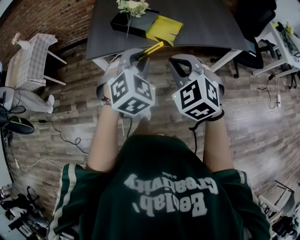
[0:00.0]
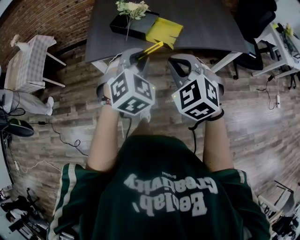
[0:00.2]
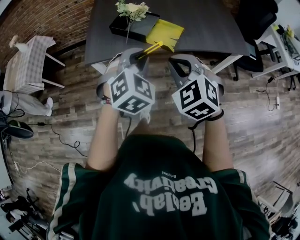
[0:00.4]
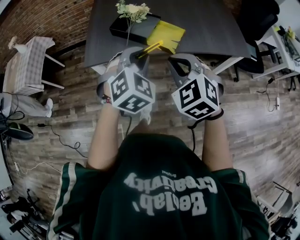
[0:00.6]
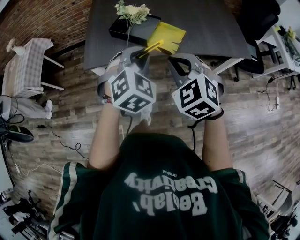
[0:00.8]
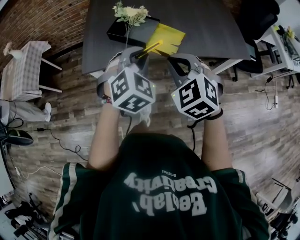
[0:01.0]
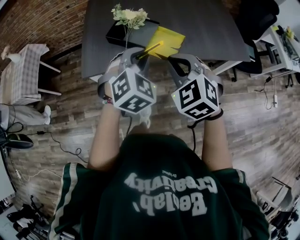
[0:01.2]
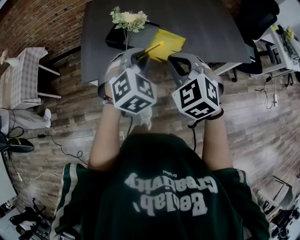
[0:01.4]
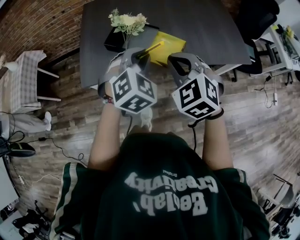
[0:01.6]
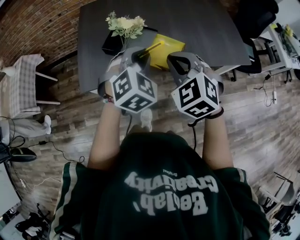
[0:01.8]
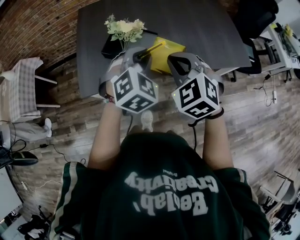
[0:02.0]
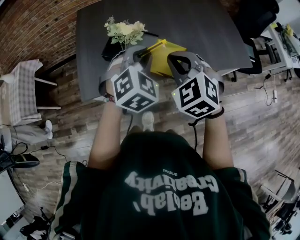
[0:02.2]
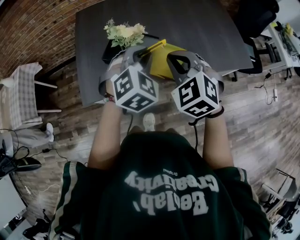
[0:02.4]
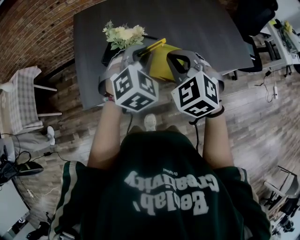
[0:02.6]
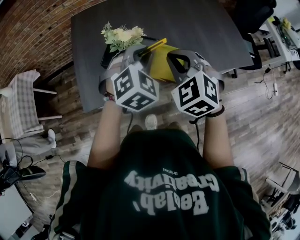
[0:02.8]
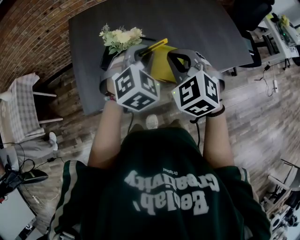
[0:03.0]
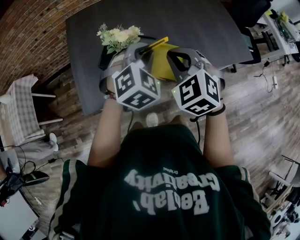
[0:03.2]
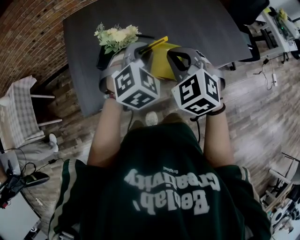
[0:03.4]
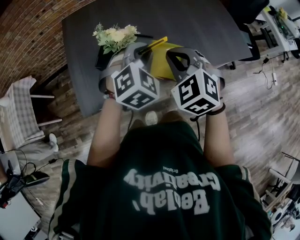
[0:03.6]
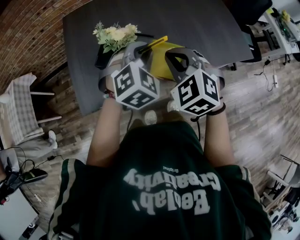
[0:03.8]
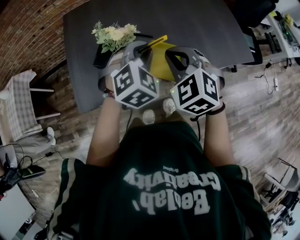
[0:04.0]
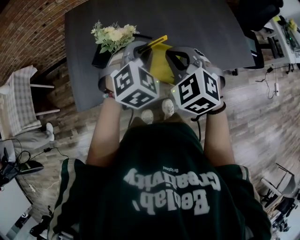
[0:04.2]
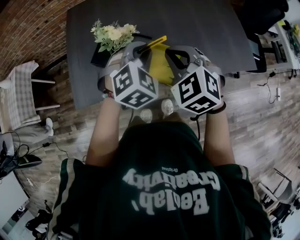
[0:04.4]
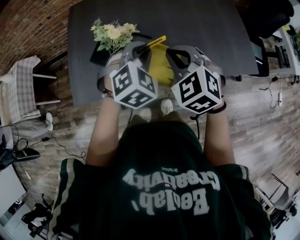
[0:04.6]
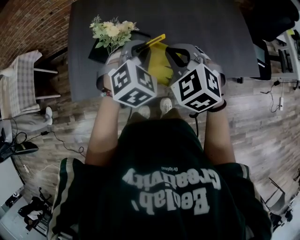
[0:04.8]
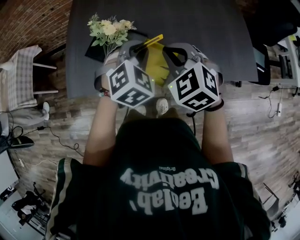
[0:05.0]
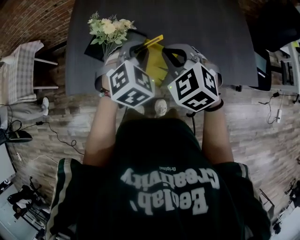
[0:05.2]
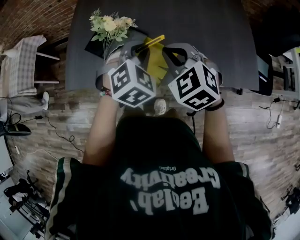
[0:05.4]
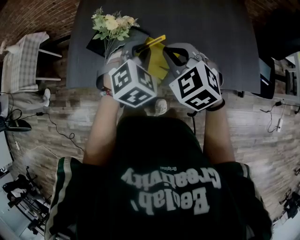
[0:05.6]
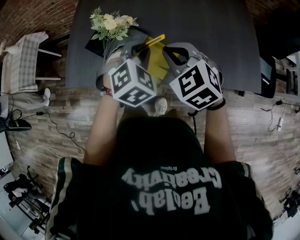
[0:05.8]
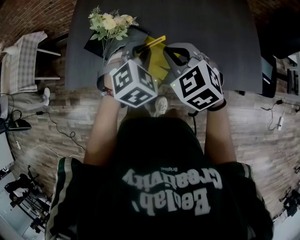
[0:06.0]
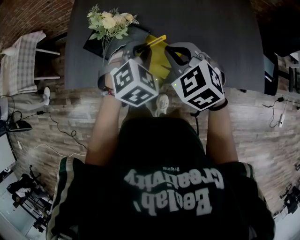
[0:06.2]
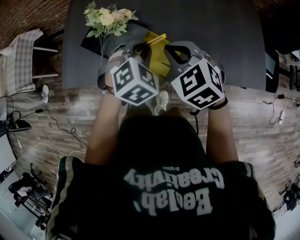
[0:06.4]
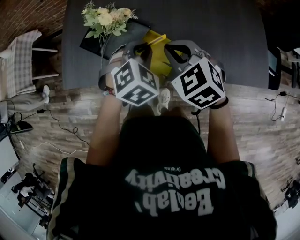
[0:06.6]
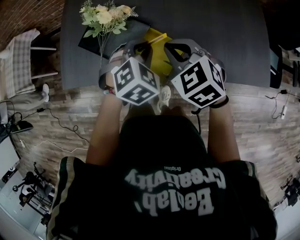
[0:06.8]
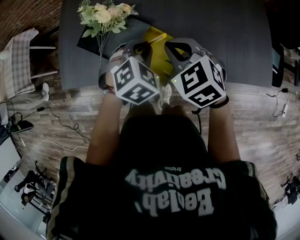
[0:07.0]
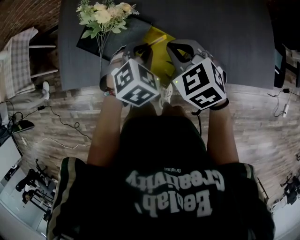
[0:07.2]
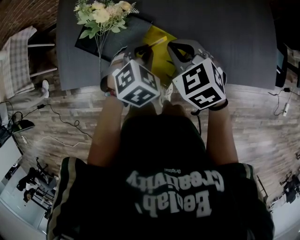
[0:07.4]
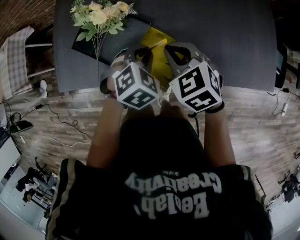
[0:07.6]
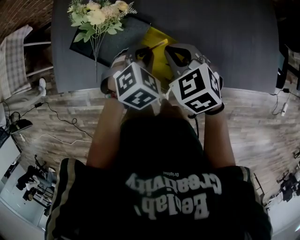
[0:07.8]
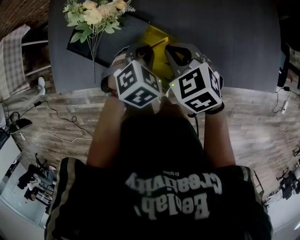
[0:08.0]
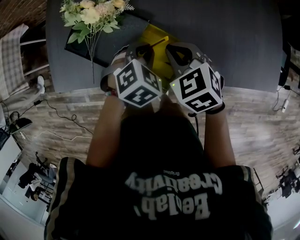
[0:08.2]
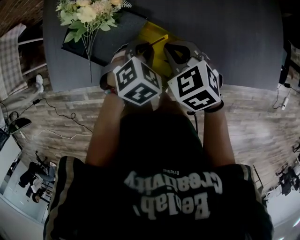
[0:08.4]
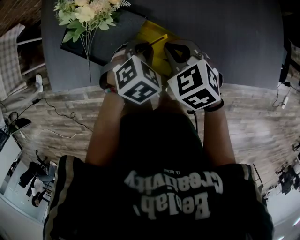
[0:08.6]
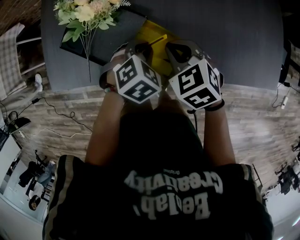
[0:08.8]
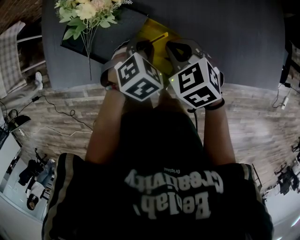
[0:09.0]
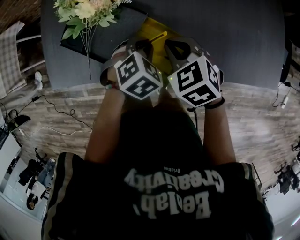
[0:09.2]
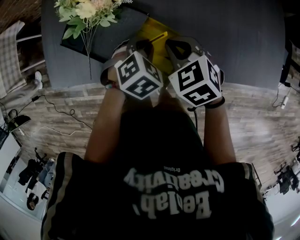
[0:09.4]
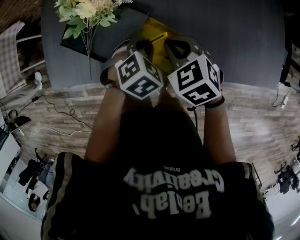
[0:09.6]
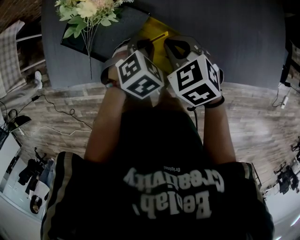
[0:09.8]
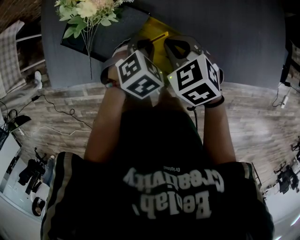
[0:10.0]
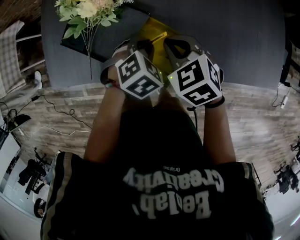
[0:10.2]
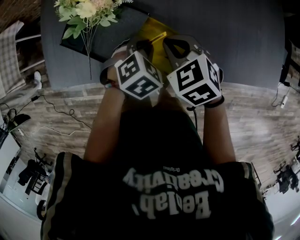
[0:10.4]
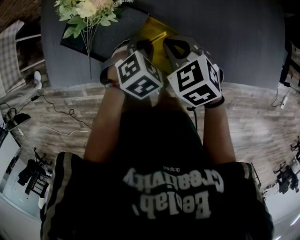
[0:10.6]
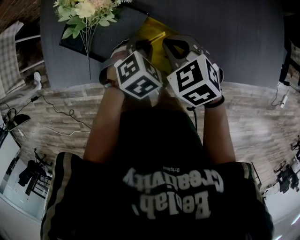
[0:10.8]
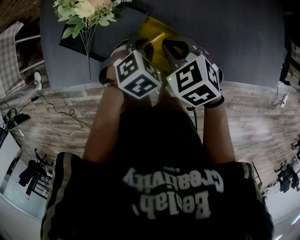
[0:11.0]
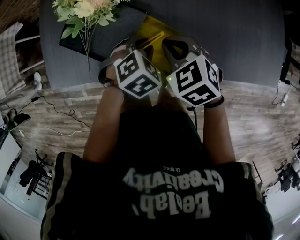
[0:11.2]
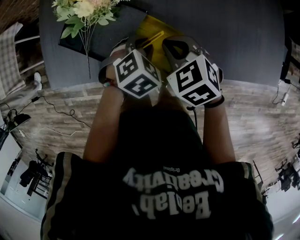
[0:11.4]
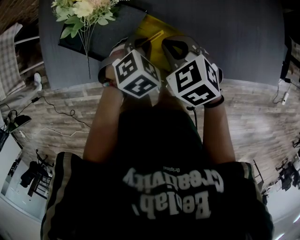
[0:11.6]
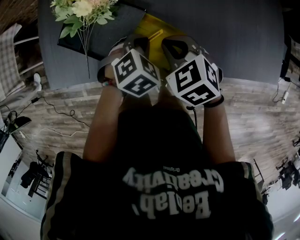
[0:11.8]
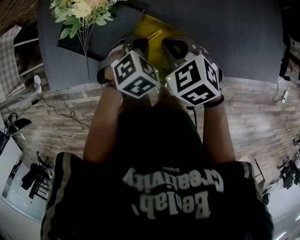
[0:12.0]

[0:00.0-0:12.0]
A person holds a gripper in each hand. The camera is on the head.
0:00.0 to 0:01.6: Both grippers move forward, roughly 20 cm.
0:01.6 to 0:03.0: The grippers both shift forward by roughly 15 cm.
0:03.0 to 0:04.4: Both grippers move to the right, some 5 cm.
0:04.4 to 0:06.0: The left gripper heads to the right and downward, covering approximately 10 cm. Meanwhile the right gripper goes some 5 cm to the right.
0:06.0 to 0:07.6: The left gripper heads downward, covering some 15 cm. Meanwhile the right gripper shifts approximately 15 cm downward and forward.
0:07.6 to 0:09.0: Both grippers move downward, approximately 5 cm.
0:09.0 to 0:12.0: The grippers move only a little.

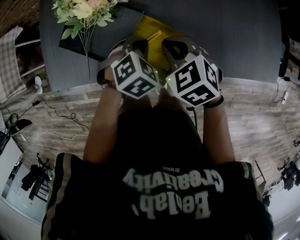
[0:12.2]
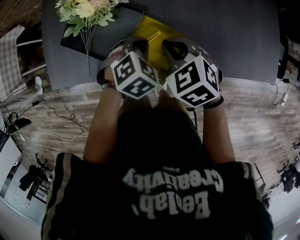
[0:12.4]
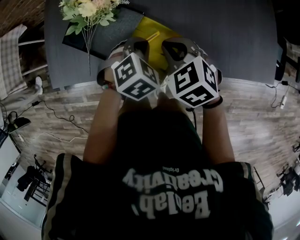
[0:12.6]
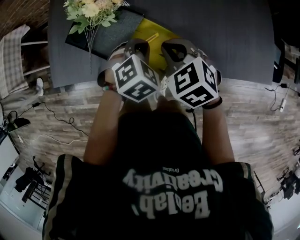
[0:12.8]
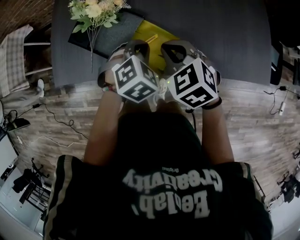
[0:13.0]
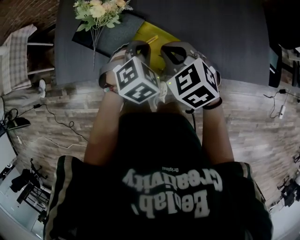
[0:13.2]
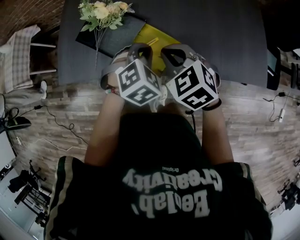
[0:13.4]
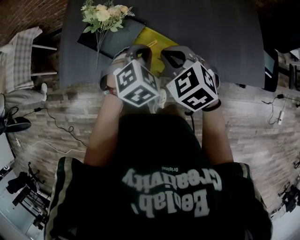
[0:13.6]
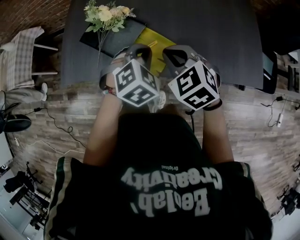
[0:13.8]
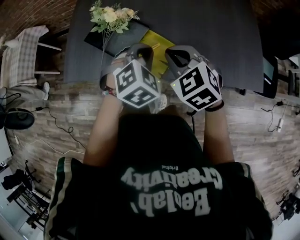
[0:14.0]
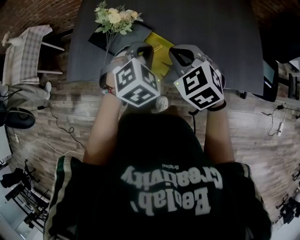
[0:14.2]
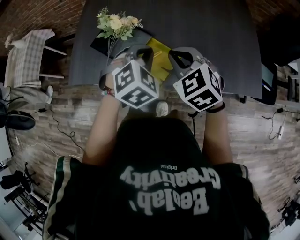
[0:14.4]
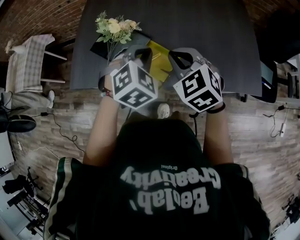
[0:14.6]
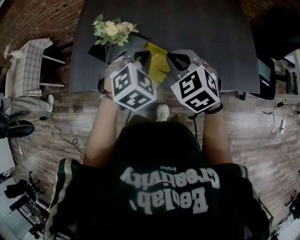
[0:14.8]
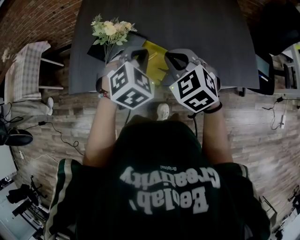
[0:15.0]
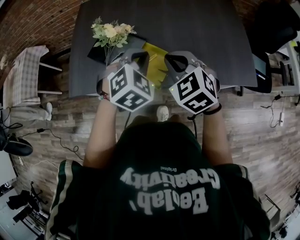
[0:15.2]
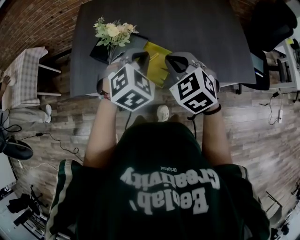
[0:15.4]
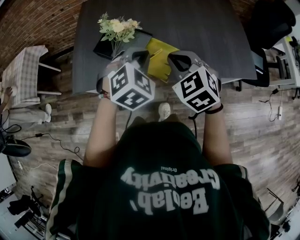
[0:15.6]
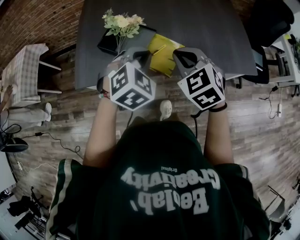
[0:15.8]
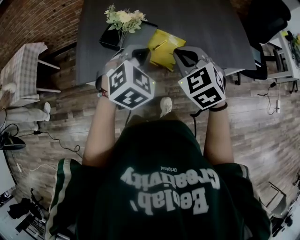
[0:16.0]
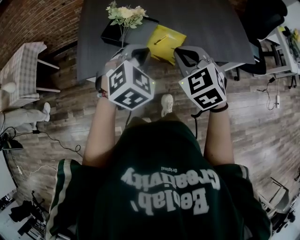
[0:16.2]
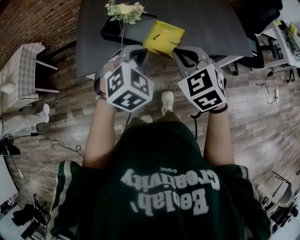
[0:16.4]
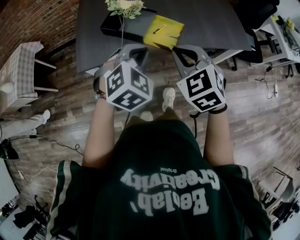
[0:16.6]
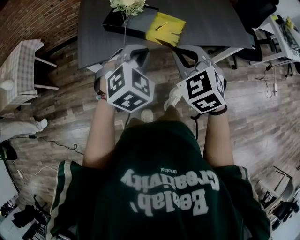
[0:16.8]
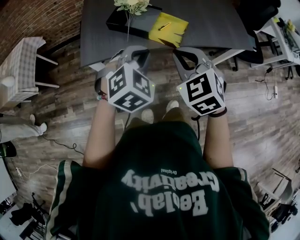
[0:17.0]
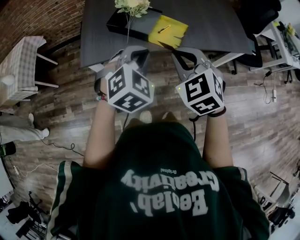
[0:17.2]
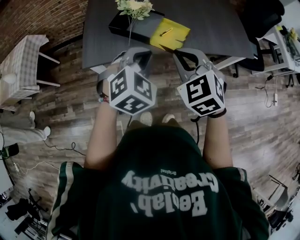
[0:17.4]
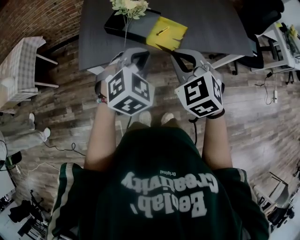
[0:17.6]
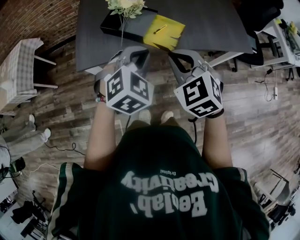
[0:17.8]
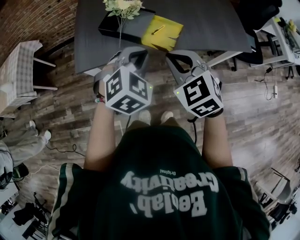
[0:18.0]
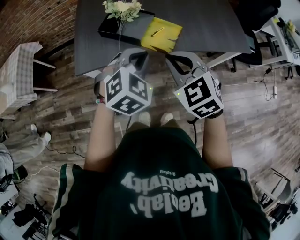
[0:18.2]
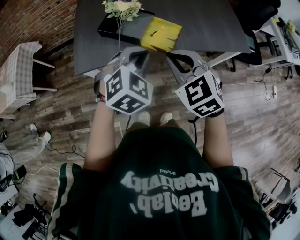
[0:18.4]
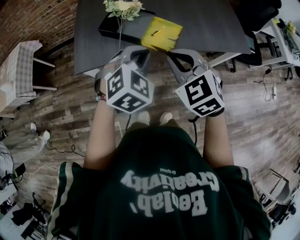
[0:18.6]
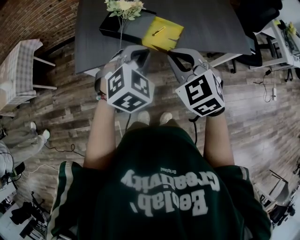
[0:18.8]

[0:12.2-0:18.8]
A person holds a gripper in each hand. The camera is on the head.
0:12.2 to 0:13.8: Both grippers travel together upward and backward, about 15 cm.
0:13.8 to 0:15.4: Both grippers travel together upward, about 10 cm.
0:15.4 to 0:17.2: Both grippers travel together backward and to the left, some 25 cm.
0:17.2 to 0:18.8: The left gripper shifts by about 5 cm.

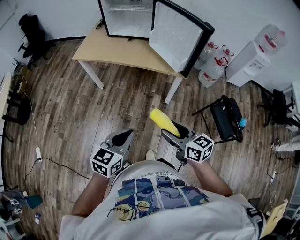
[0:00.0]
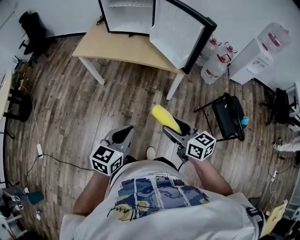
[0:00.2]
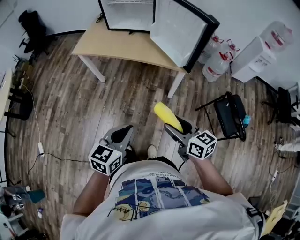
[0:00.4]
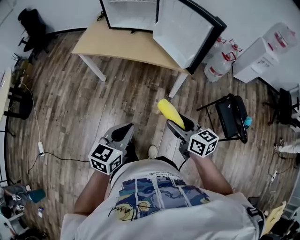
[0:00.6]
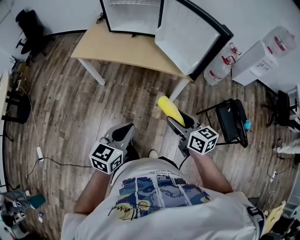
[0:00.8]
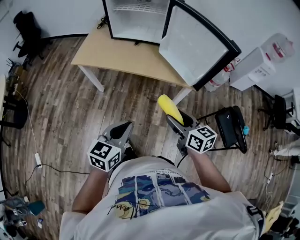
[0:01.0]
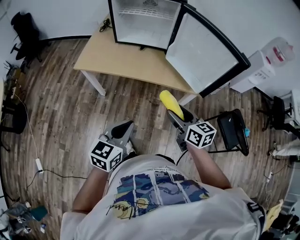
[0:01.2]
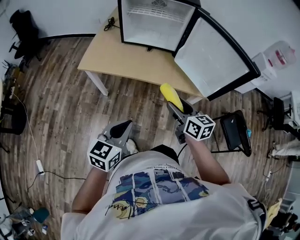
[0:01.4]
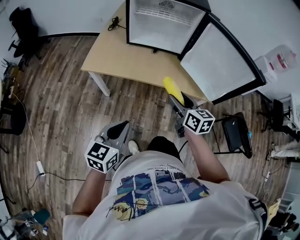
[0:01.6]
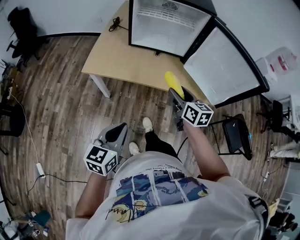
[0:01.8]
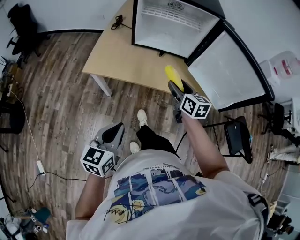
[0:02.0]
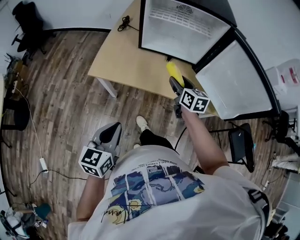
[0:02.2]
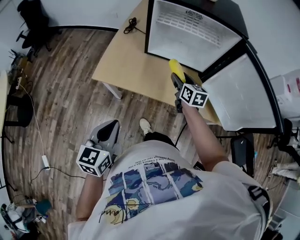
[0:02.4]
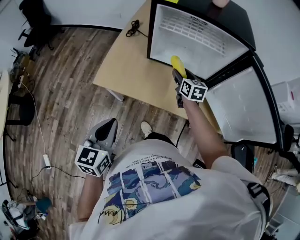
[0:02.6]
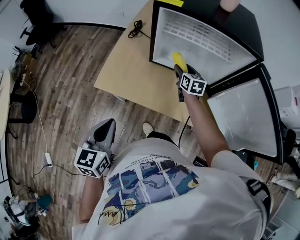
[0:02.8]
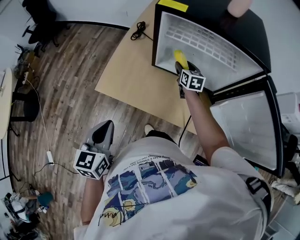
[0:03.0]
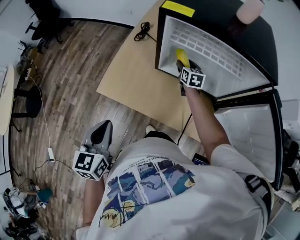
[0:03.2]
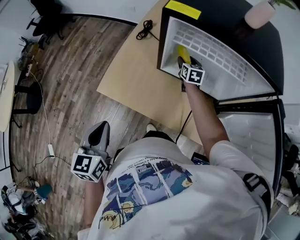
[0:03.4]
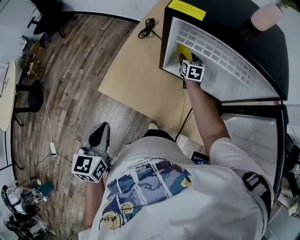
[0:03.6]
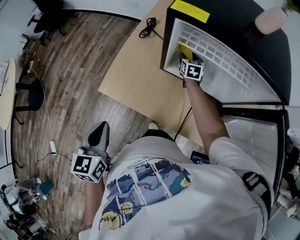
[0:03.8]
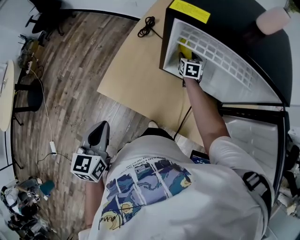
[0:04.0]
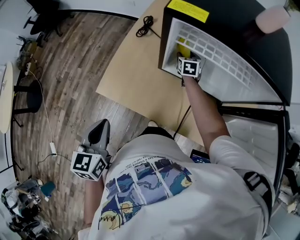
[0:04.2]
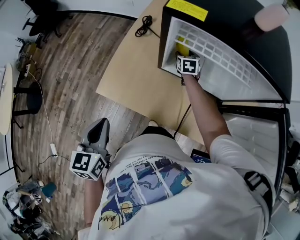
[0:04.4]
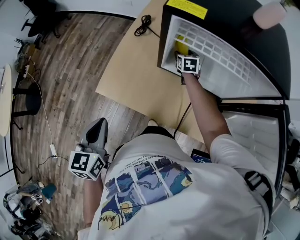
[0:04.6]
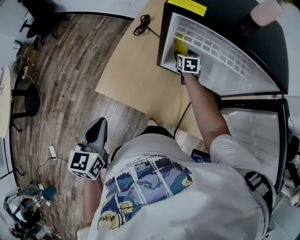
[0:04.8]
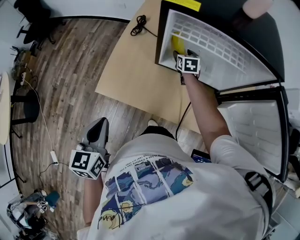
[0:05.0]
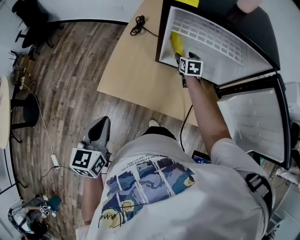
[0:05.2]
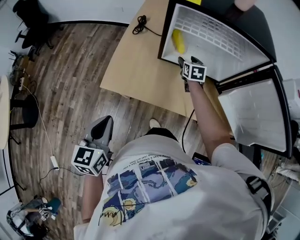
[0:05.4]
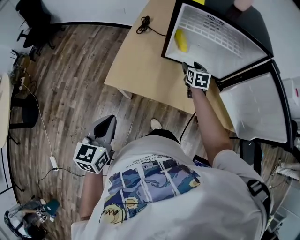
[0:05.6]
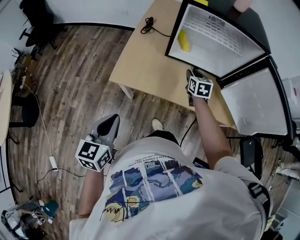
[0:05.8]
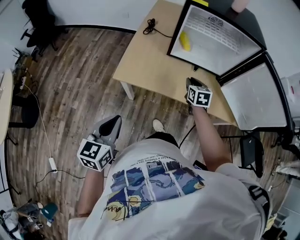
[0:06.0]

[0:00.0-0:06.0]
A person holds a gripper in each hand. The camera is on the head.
0:00.0 to 0:01.6: The two grippers go roughly 35 cm forward and to the left. The right gripper turns by approximately 20 degrees.
0:01.6 to 0:03.0: The right gripper goes approximately 50 cm forward. The left gripper travels forward and to the left by some 30 cm, and swivels about 20 degrees.
0:03.0 to 0:04.4: The right gripper shifts approximately 15 cm forward and downward, while the left gripper goes some 5 cm forward.
0:04.4 to 0:06.0: The left gripper travels backward by some 15 cm. The right gripper goes roughly 30 cm backward, and closes its fingers.
